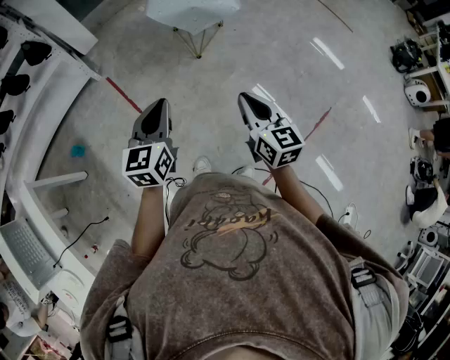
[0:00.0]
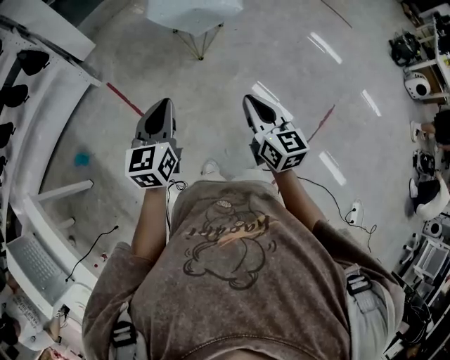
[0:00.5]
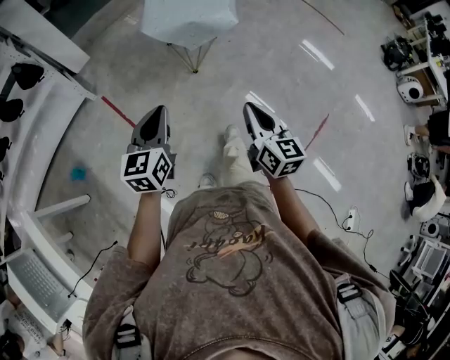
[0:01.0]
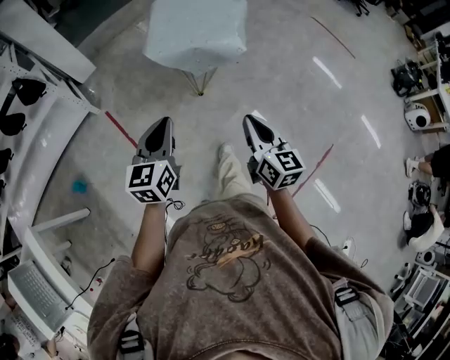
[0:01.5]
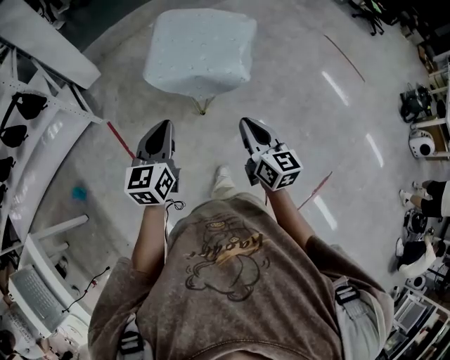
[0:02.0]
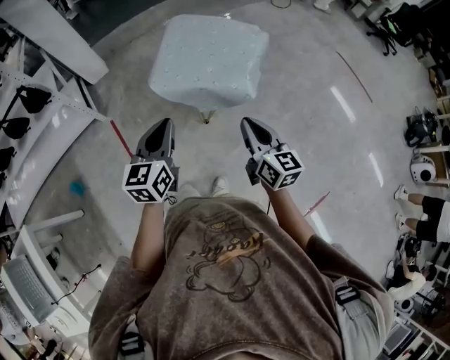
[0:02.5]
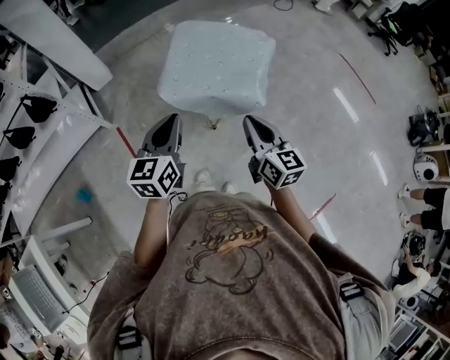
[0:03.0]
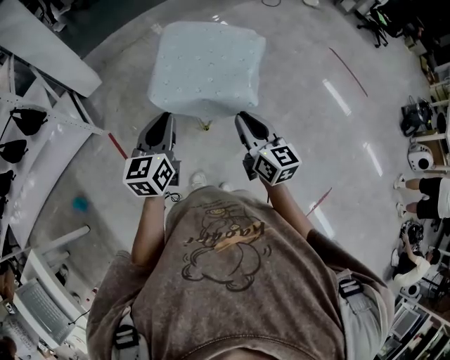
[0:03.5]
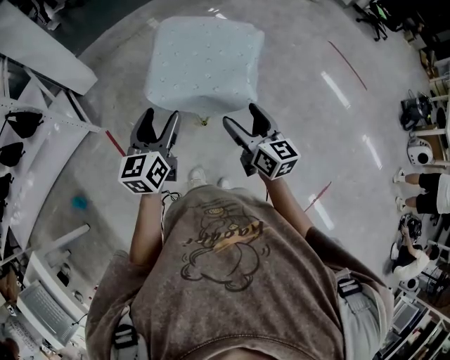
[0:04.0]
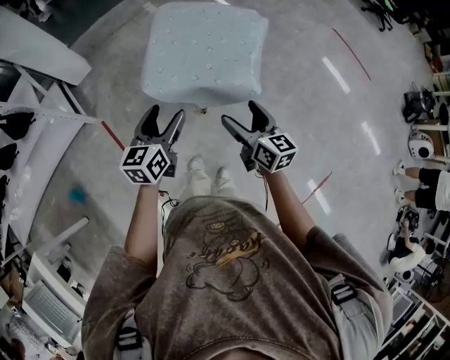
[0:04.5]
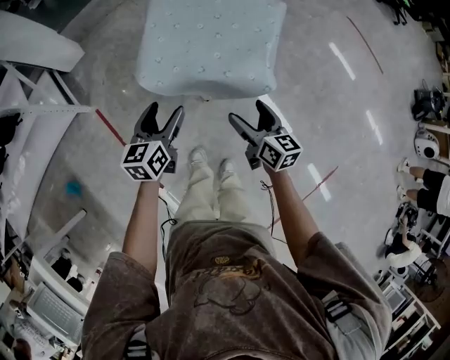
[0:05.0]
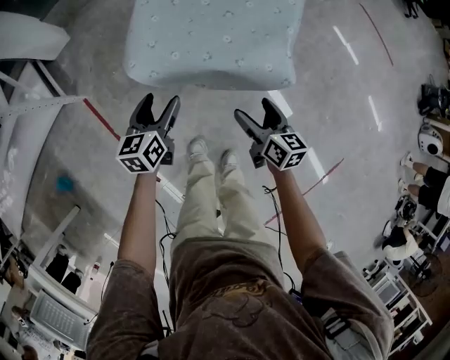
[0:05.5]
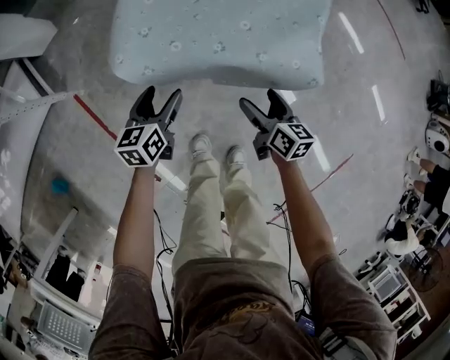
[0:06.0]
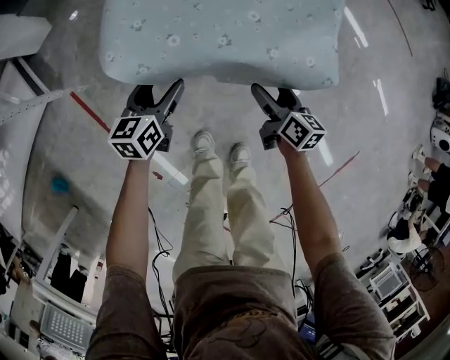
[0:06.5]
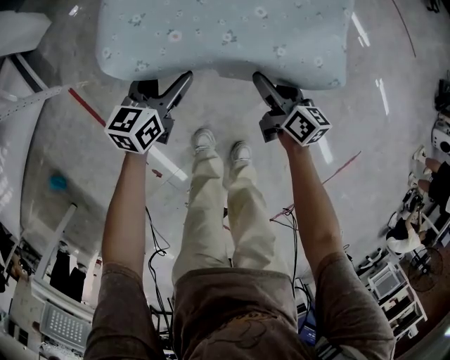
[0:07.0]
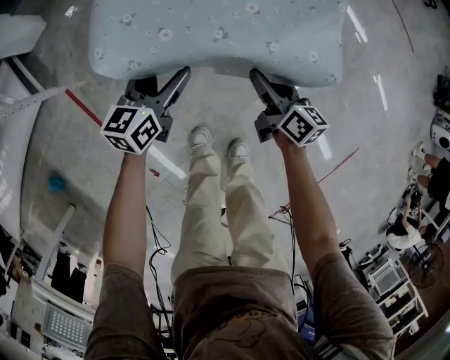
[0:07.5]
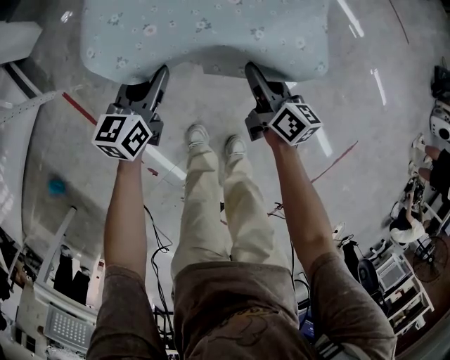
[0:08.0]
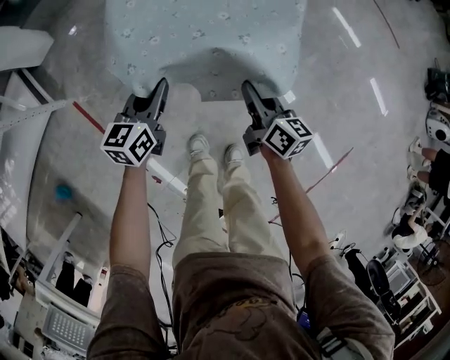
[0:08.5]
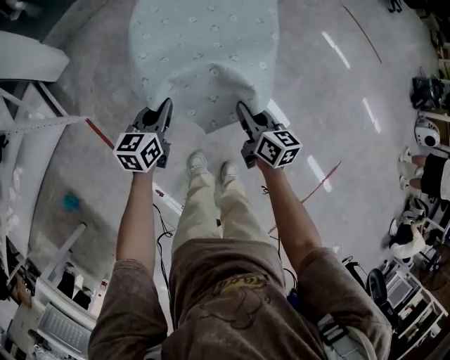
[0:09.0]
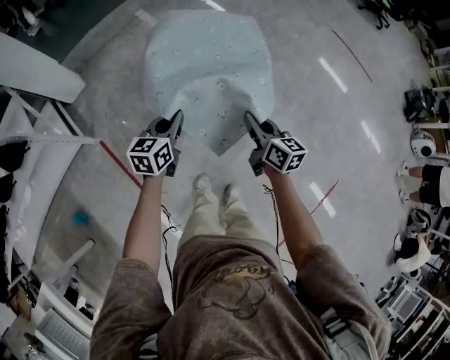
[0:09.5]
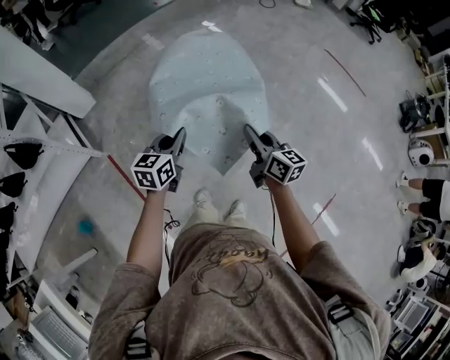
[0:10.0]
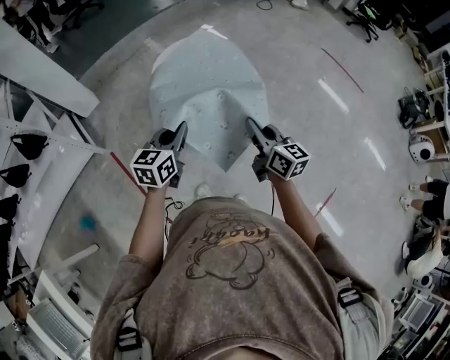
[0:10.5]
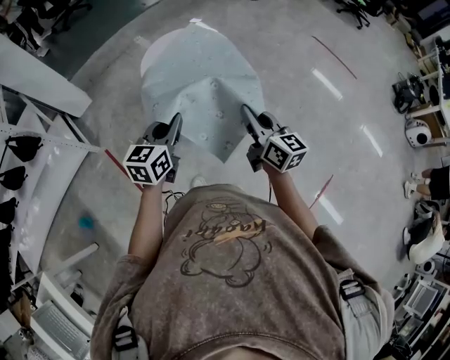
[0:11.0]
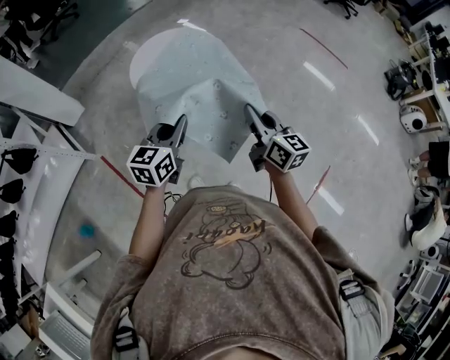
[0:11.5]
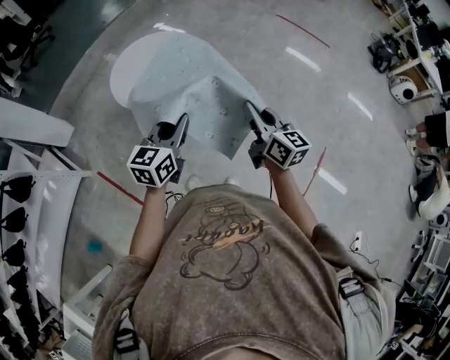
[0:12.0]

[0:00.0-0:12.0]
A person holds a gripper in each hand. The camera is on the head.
0:00.0 to 0:02.0: Both grippers move forward, approximately 35 cm.
0:02.0 to 0:04.0: Both grippers travel together forward, about 15 cm. The left gripper opens, while the right gripper opens up.
0:04.0 to 0:06.0: Both grippers travel together downward, approximately 40 cm. The left gripper swivels about 20 degrees; the right gripper rotates roughly 30 degrees.
0:06.0 to 0:08.0: The right gripper closes up, while the left gripper closes.
0:08.0 to 0:10.0: The grippers both shift upward by some 30 cm.
0:10.0 to 0:12.0: The grippers both shift to the right, backward and upward by roughly 20 cm.

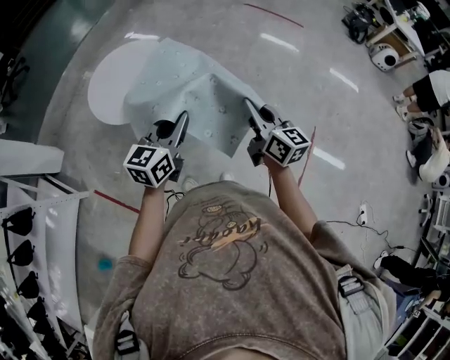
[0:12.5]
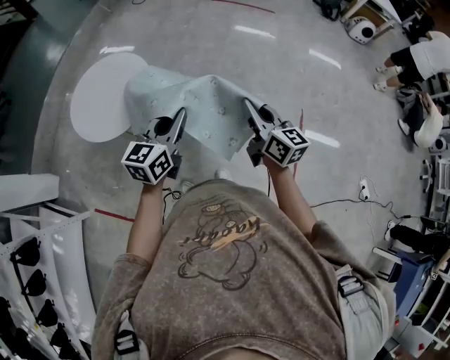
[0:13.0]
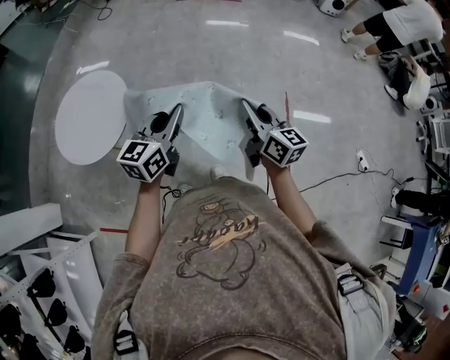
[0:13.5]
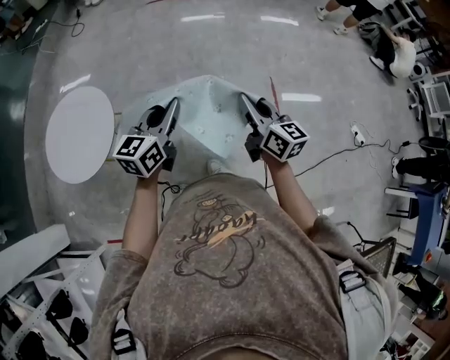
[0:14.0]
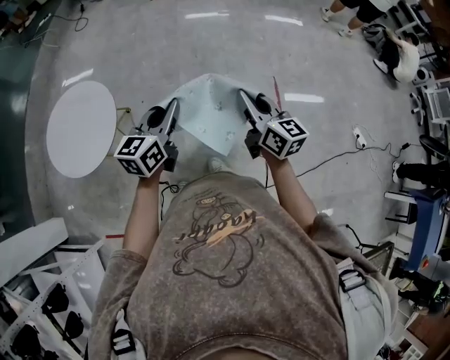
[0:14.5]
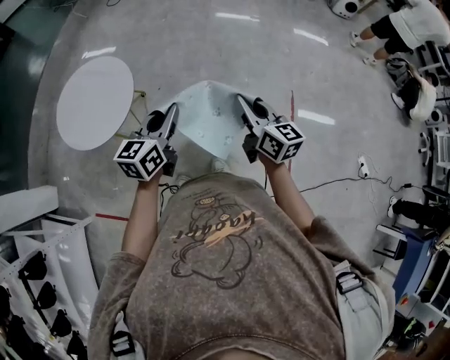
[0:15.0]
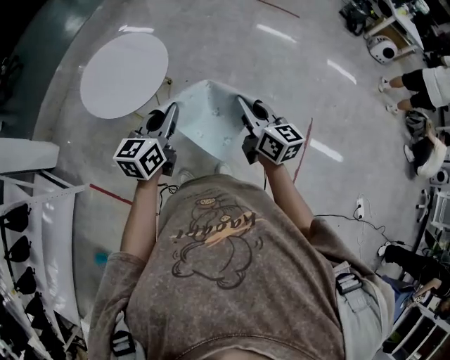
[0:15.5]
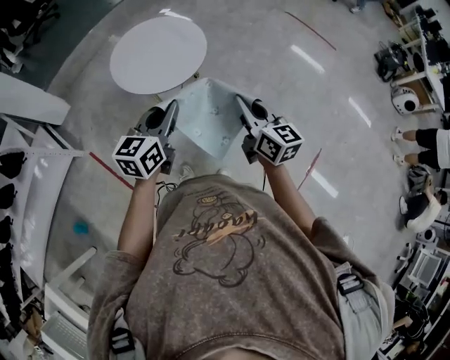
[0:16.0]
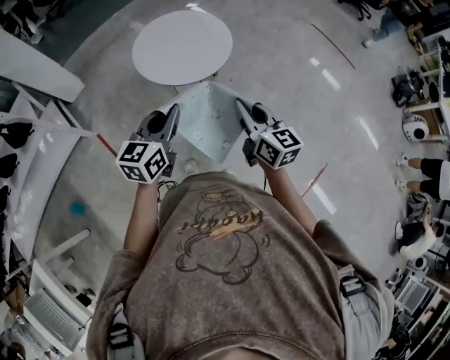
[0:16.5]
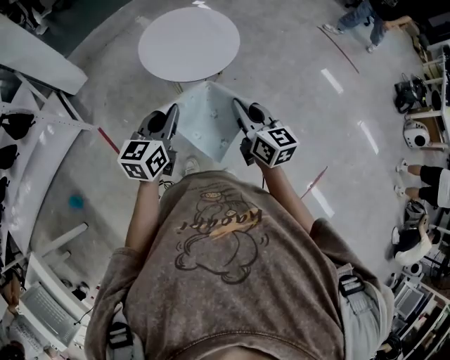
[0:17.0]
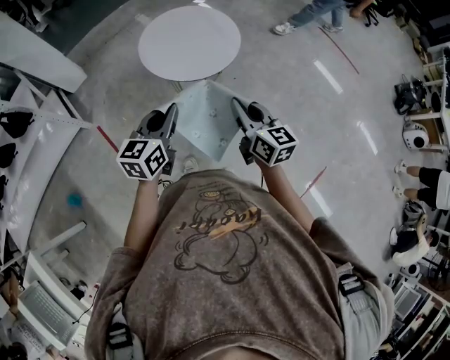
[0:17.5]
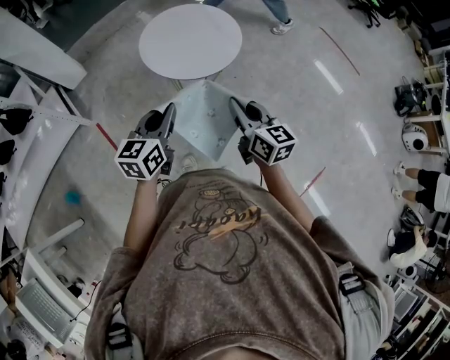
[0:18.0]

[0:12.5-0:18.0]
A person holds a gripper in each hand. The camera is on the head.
0:12.5 to 0:14.5: The right gripper moves some 15 cm, and turns by some 30 degrees. Meanwhile the left gripper moves some 15 cm, and swivels about 20 degrees.
0:14.5 to 0:16.0: The right gripper ends up approximately 25 cm from where it was, and turns by approximately 40 degrees. Meanwhile the left gripper moves roughly 25 cm, and turns by about 40 degrees.
0:16.0 to 0:18.0: The grippers both shift to the left by roughly 10 cm.

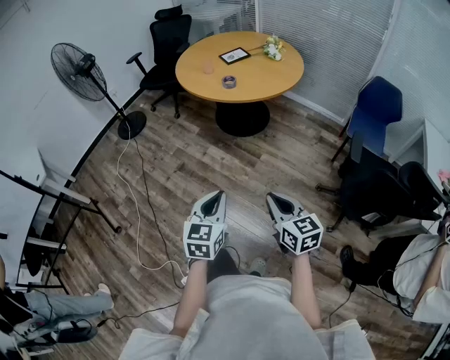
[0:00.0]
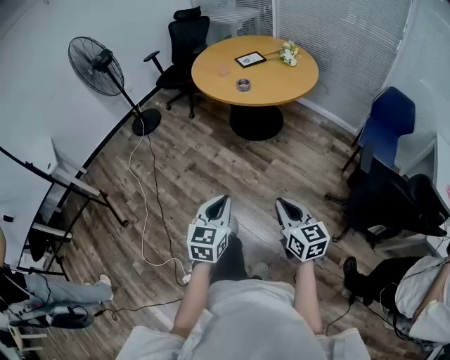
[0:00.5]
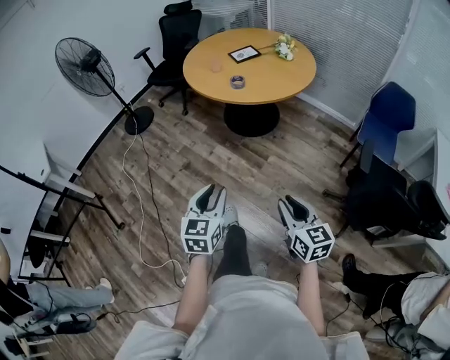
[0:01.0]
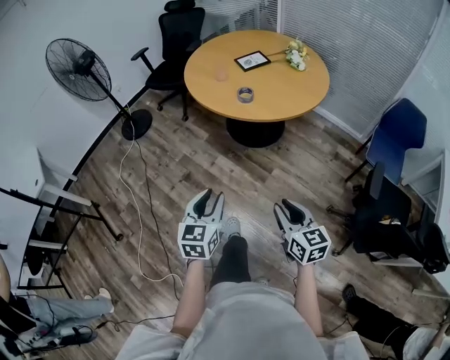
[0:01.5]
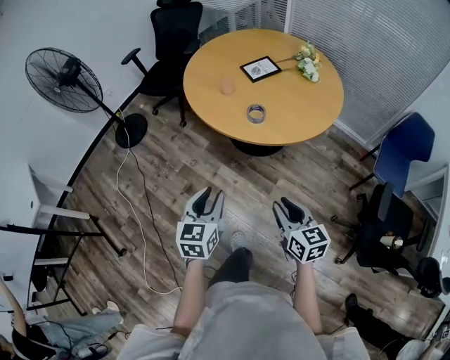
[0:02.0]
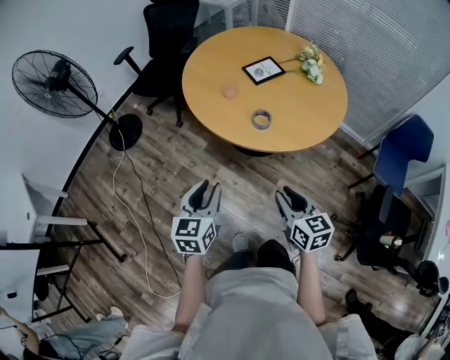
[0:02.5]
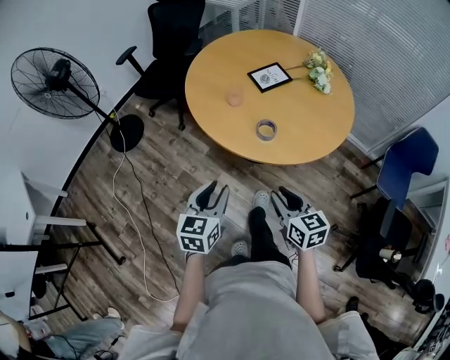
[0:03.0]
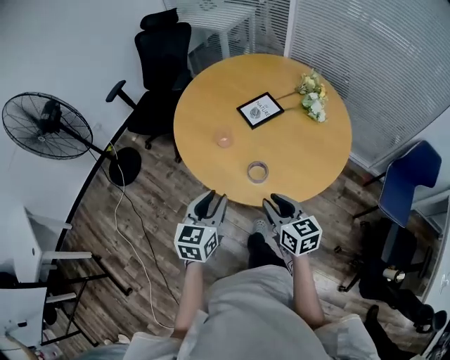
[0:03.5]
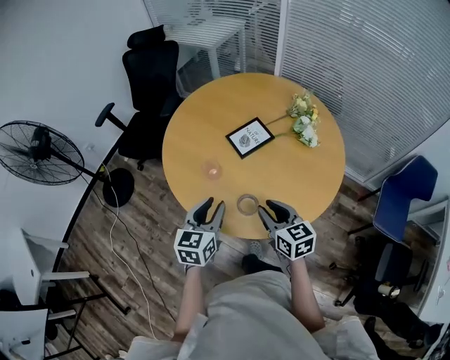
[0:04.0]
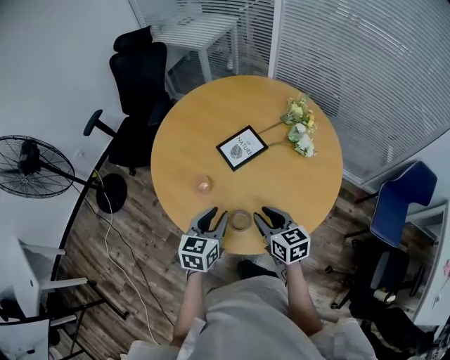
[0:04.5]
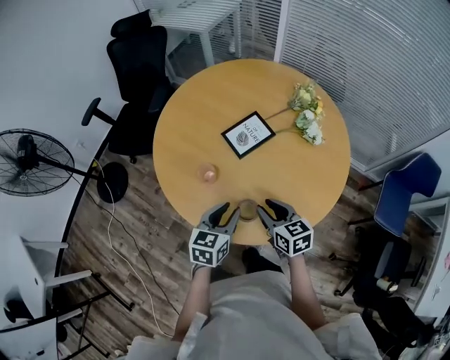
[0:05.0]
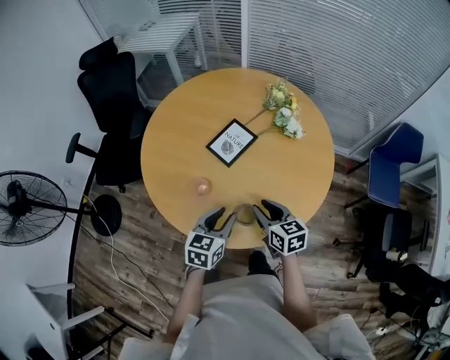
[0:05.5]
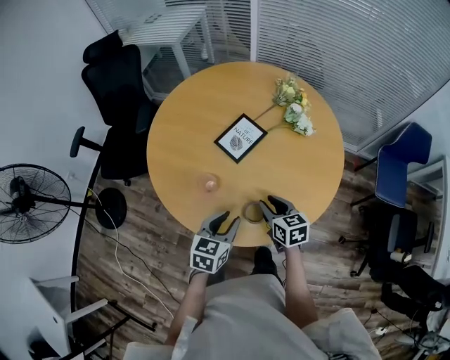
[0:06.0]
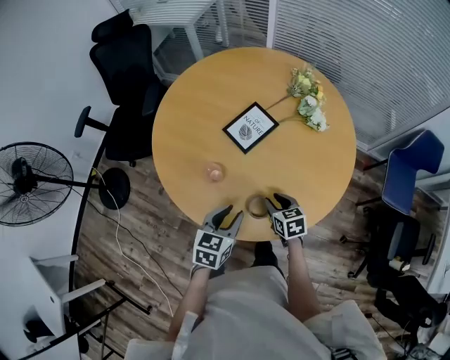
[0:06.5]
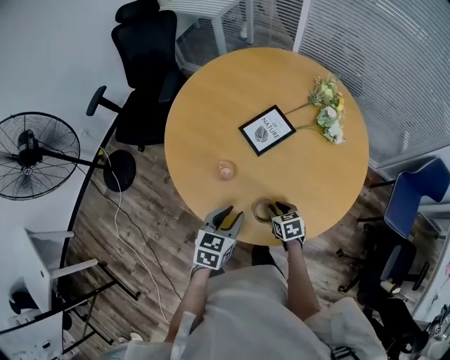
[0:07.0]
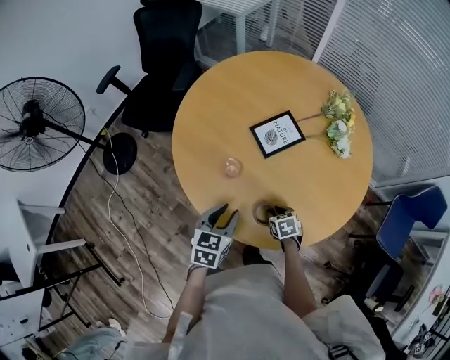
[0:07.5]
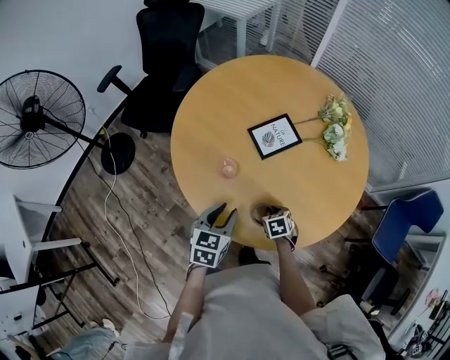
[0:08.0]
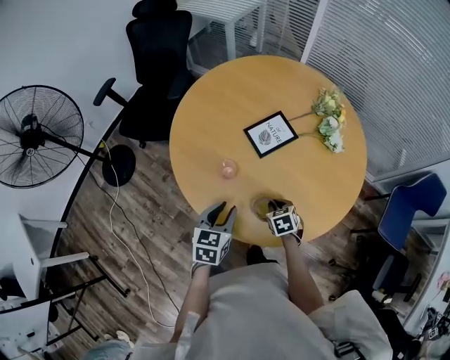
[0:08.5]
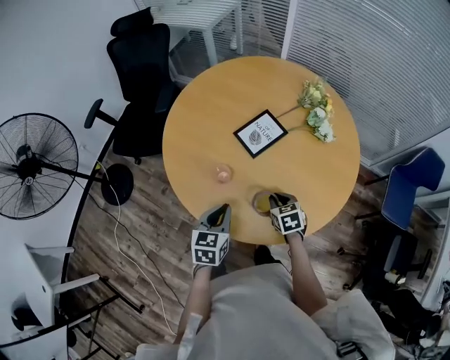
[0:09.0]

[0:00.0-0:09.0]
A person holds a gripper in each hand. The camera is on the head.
0:00.0 to 0:02.0: The grippers both shift forward by some 40 cm. The left gripper opens up. The right gripper opens.
0:02.0 to 0:04.5: The two grippers travel together, forward, approximately 50 cm.
0:04.5 to 0:07.0: The right gripper travels downward by roughly 20 cm, and swivels roughly 30 degrees, while the left gripper travels downward by about 5 cm.
0:07.0 to 0:09.0: The left gripper closes up; the right gripper goes about 5 cm upward, and closes up.
